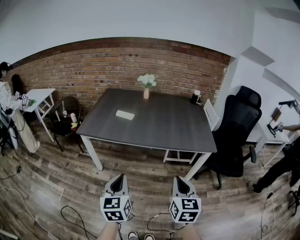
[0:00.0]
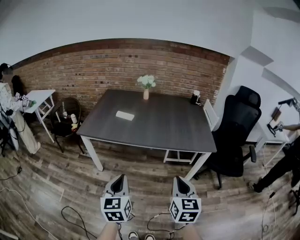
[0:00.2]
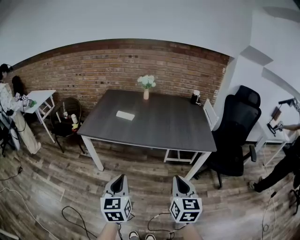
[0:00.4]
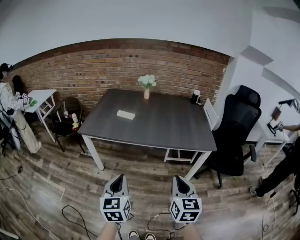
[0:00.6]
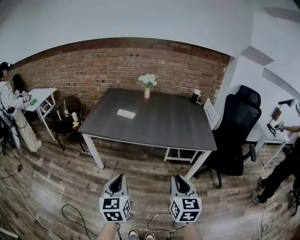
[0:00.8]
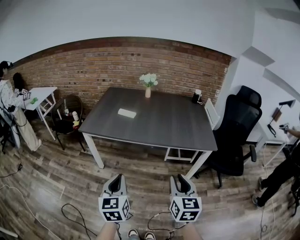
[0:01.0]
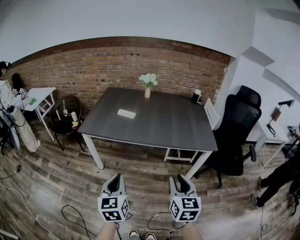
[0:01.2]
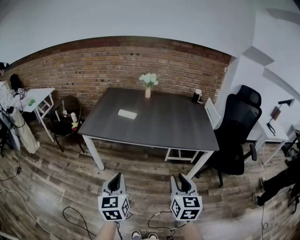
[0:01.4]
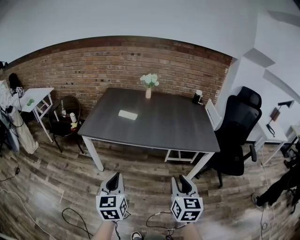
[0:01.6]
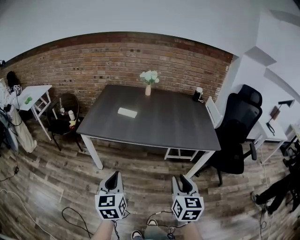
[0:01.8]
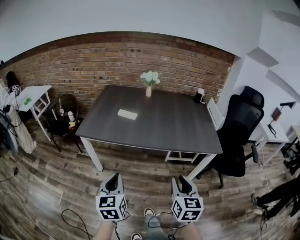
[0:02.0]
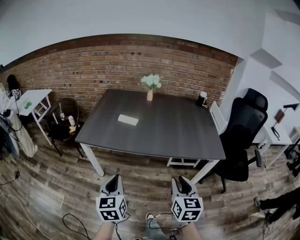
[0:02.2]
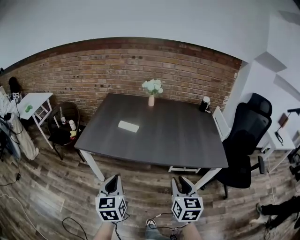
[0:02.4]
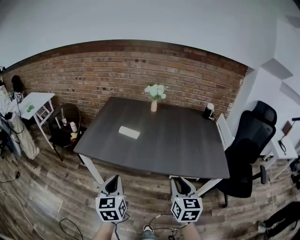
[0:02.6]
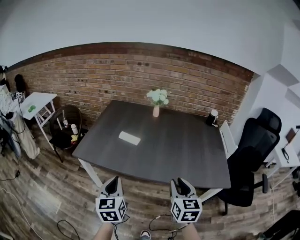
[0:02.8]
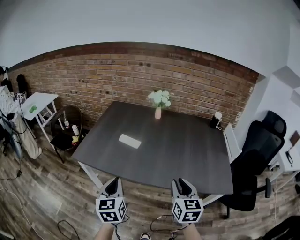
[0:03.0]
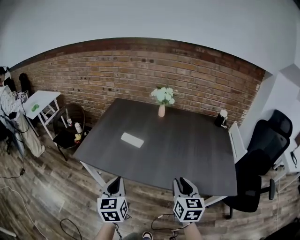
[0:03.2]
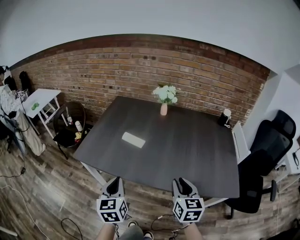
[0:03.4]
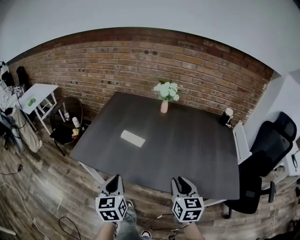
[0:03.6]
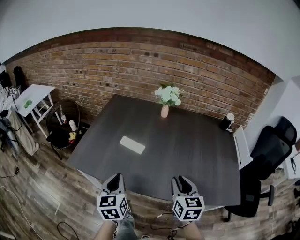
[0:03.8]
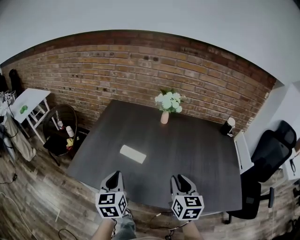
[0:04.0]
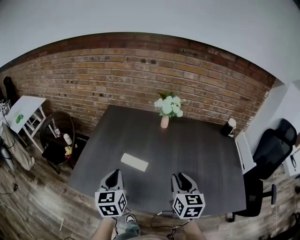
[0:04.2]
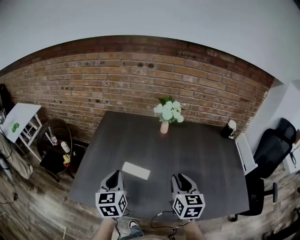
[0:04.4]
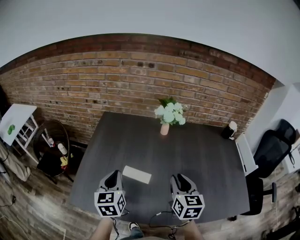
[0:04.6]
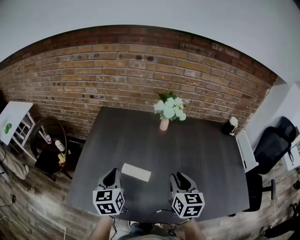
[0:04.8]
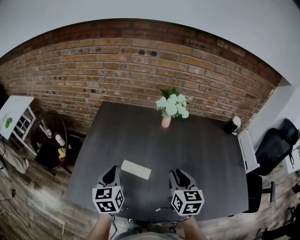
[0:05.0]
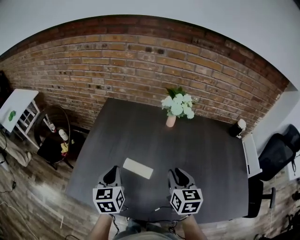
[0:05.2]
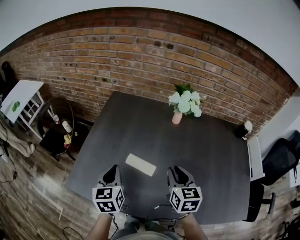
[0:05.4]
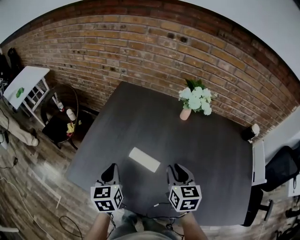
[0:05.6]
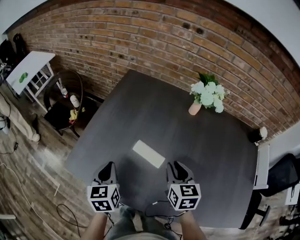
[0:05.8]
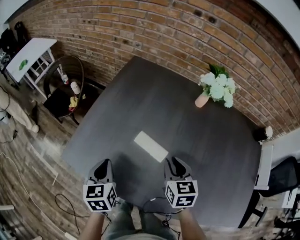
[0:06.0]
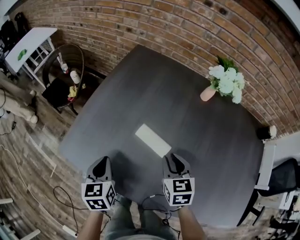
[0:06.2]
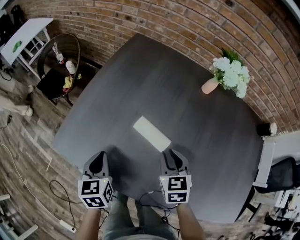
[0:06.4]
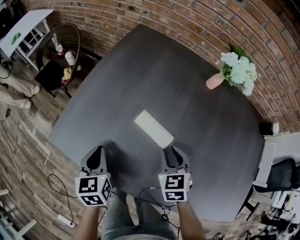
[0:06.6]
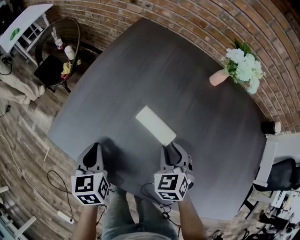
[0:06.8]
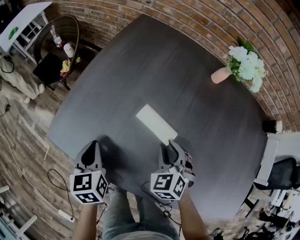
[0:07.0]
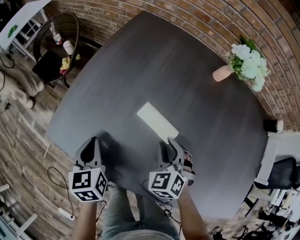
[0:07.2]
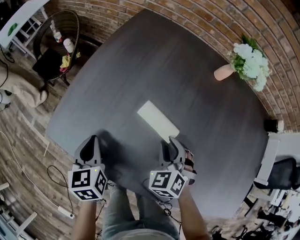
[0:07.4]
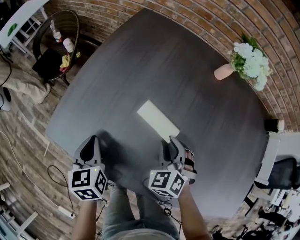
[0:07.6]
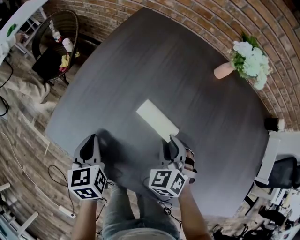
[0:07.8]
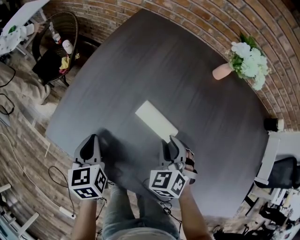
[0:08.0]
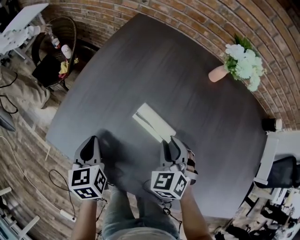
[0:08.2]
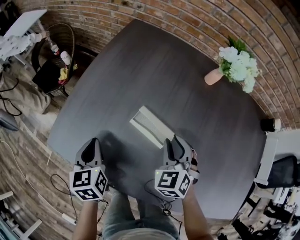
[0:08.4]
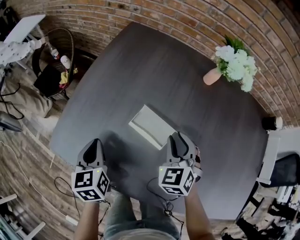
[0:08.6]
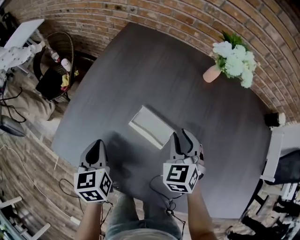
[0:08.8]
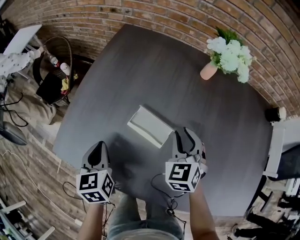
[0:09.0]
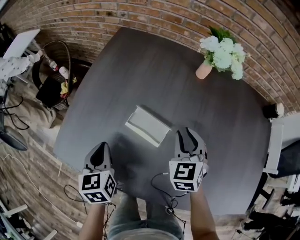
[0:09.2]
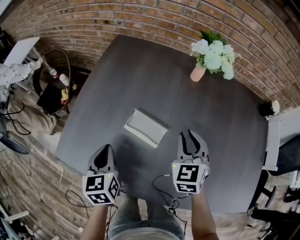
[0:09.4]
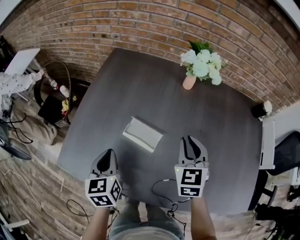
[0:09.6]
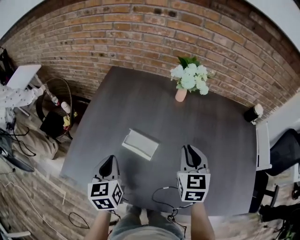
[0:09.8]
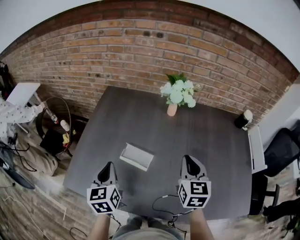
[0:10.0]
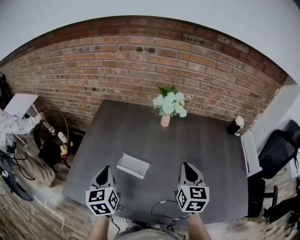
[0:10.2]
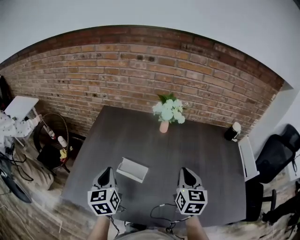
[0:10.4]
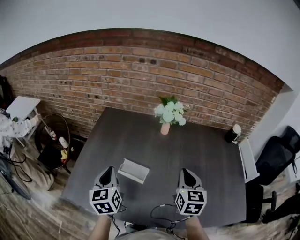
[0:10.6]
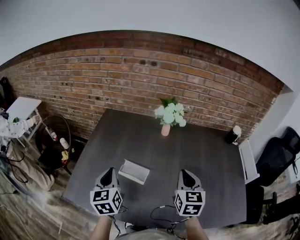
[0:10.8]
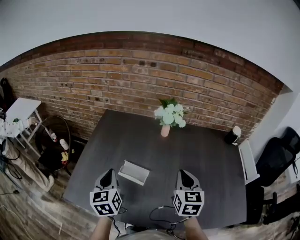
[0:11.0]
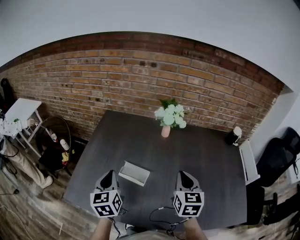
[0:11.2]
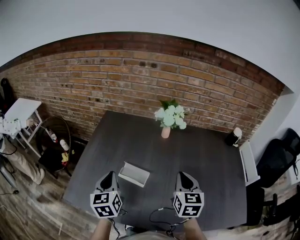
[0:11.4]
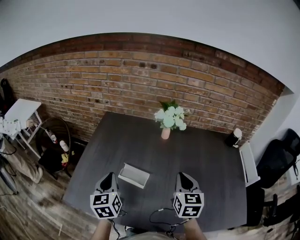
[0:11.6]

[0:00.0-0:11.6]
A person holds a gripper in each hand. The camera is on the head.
0:00.0 to 0:01.4: The right gripper opens up.
0:01.4 to 0:02.8: Both grippers move forward, approximately 25 cm.
0:02.8 to 0:04.4: Both grippers travel together forward, some 35 cm.
0:04.4 to 0:05.8: The right gripper moves forward, downward and to the left, roughly 15 cm, and changes its angle by some 20 degrees; the left gripper goes roughly 15 cm downward and to the left, and changes its angle by about 20 degrees.
0:05.8 to 0:07.2: Both grippers travel together downward and to the left, about 15 cm. The right gripper twists approximately 50 degrees counterclockwise, seen from behind.
0:07.2 to 0:08.8: The right gripper shifts approximately 10 cm to the right, upward and forward, while the left gripper moves some 5 cm.
0:08.8 to 0:10.2: The left gripper shifts approximately 15 cm upward and to the right, and turns by roughly 20 degrees. The right gripper moves upward, to the right and backward, some 20 cm, swivels some 50 degrees, and closes.
0:10.2 to 0:11.6: The grippers move only a little.

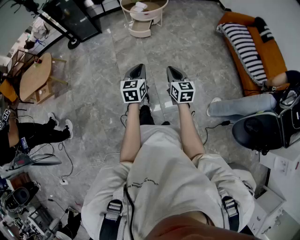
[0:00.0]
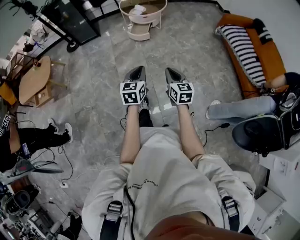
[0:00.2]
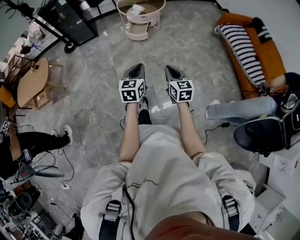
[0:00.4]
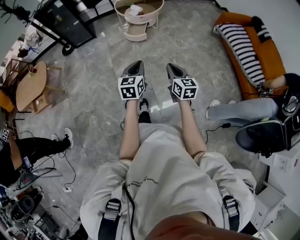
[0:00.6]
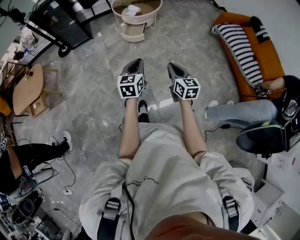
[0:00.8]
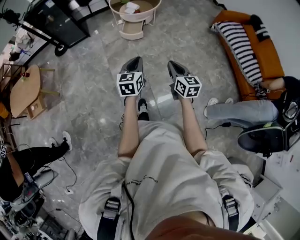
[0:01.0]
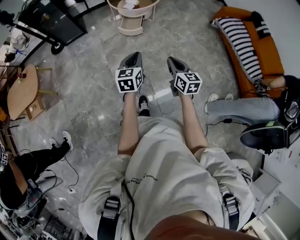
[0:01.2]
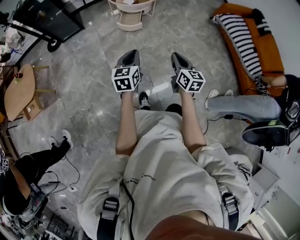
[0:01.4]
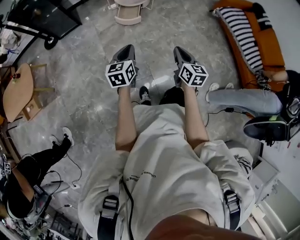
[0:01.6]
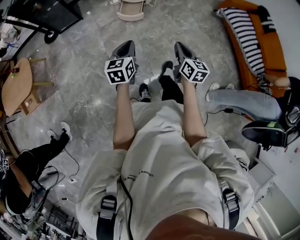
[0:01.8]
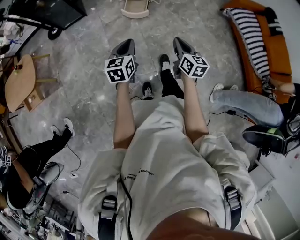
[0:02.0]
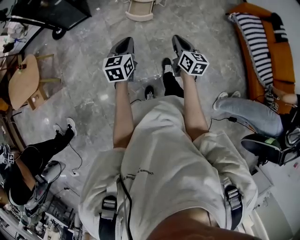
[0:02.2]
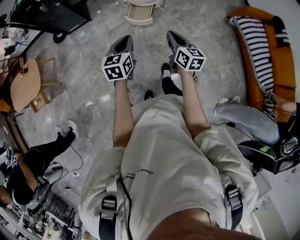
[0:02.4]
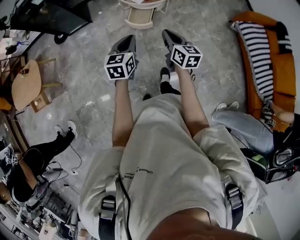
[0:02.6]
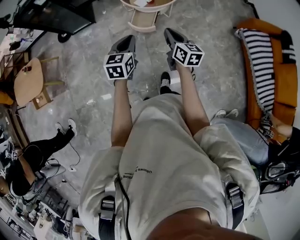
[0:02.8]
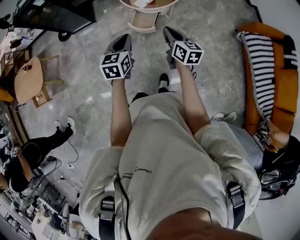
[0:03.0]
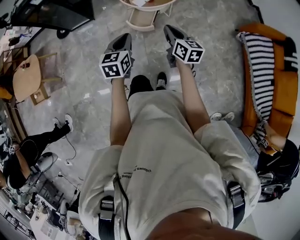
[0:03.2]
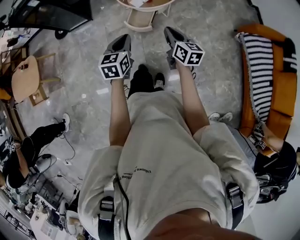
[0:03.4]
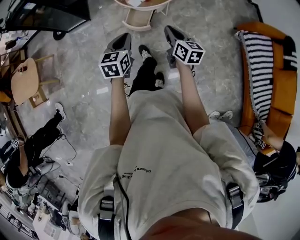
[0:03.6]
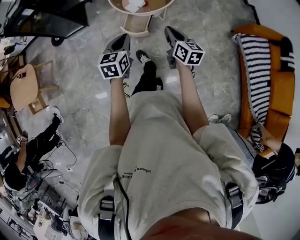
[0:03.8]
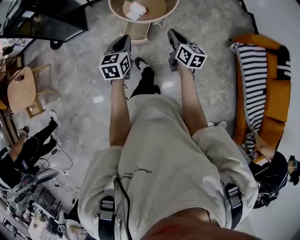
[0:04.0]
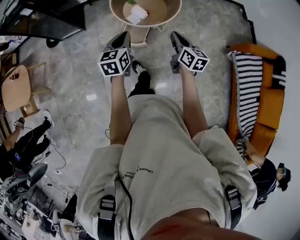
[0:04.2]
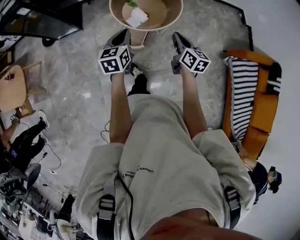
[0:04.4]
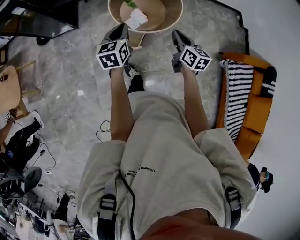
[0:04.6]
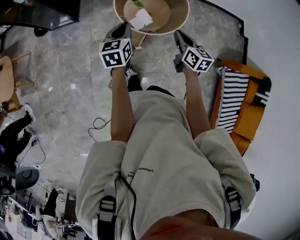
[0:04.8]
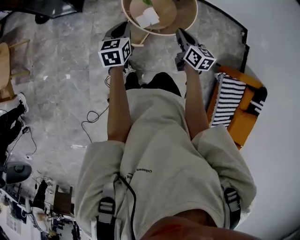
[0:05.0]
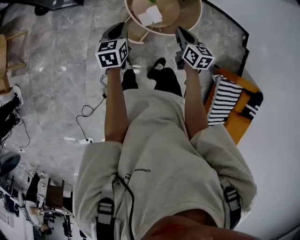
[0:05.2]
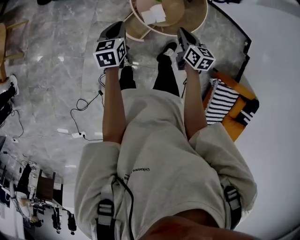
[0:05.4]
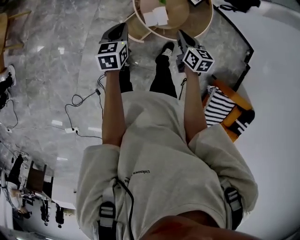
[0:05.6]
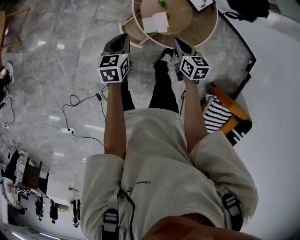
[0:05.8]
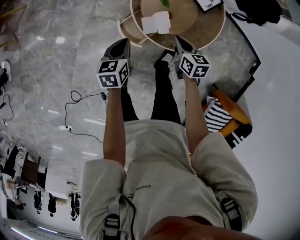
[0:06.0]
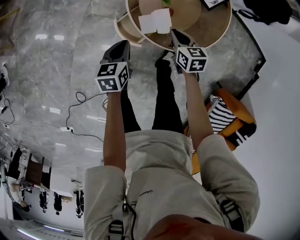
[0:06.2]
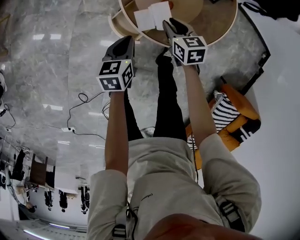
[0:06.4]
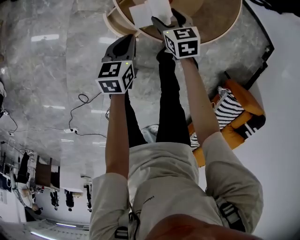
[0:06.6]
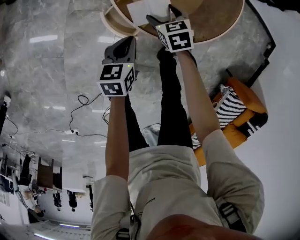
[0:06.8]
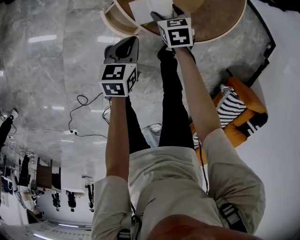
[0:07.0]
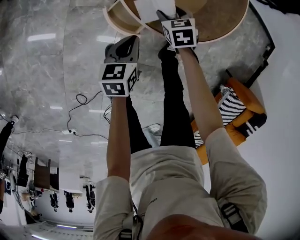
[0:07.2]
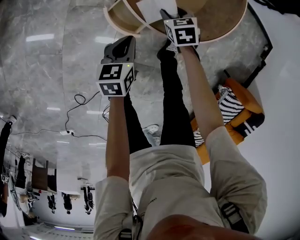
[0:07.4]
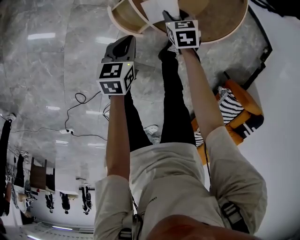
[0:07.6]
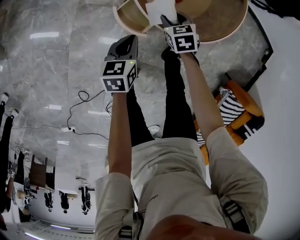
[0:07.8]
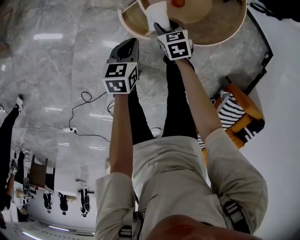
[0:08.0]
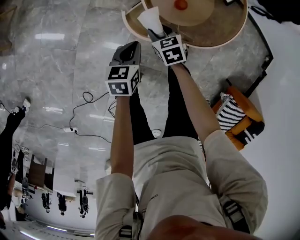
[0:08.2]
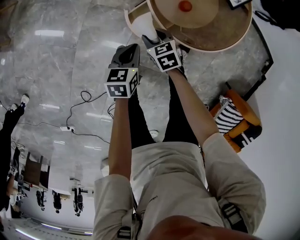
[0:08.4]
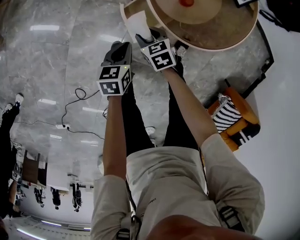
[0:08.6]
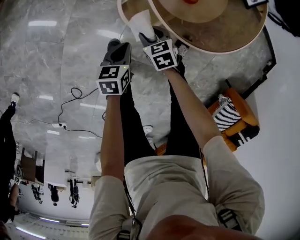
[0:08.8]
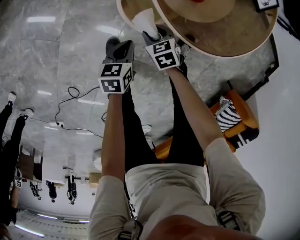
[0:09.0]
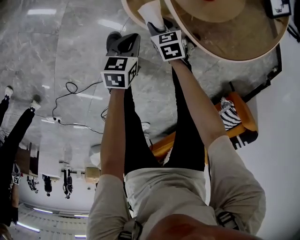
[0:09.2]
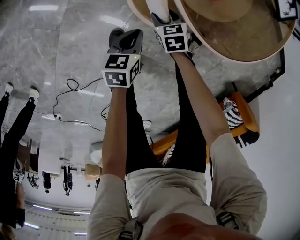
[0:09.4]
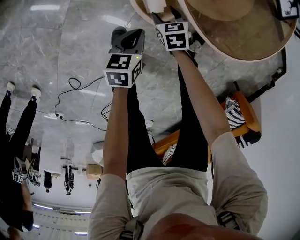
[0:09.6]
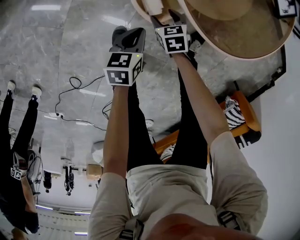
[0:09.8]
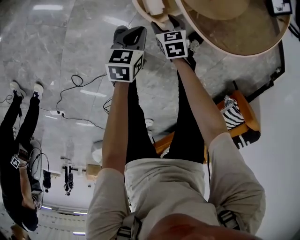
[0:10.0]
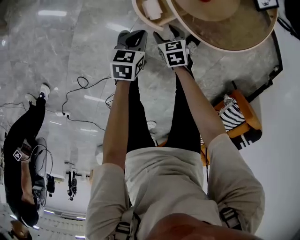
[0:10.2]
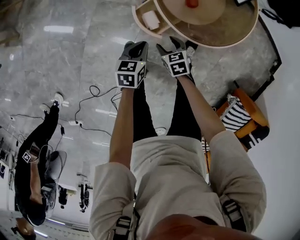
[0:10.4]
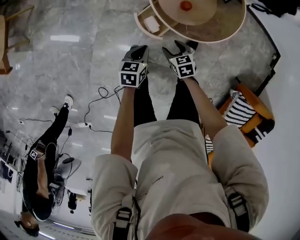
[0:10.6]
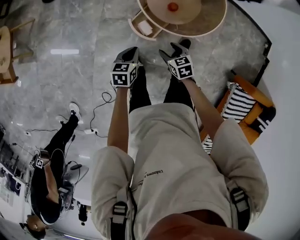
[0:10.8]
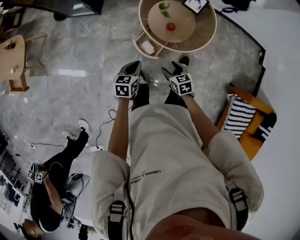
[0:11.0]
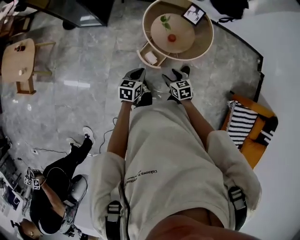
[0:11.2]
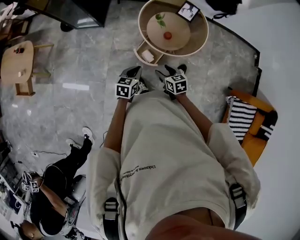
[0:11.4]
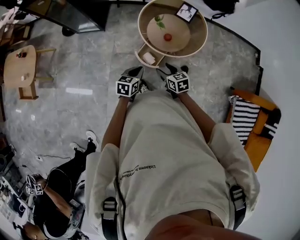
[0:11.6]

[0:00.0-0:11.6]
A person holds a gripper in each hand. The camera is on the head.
0:00.0 to 0:01.4: The left gripper goes approximately 30 cm forward and to the left, while the right gripper is displaced forward by approximately 25 cm.
0:01.4 to 0:02.8: Both grippers move forward, roughly 35 cm.
0:02.8 to 0:04.4: The two grippers go roughly 30 cm forward.
0:04.4 to 0:05.8: The right gripper moves about 35 cm, and turns by about 40 degrees. The left gripper moves downward, approximately 20 cm, and changes its angle by roughly 30 degrees.
0:05.8 to 0:07.2: The grippers both shift downward by roughly 30 cm. The right gripper turns by some 30 degrees, and opens its fingers.
0:07.2 to 0:08.8: The left gripper shifts approximately 15 cm downward, to the left and backward. The right gripper travels to the left, backward and downward by some 20 cm.
0:08.8 to 0:10.2: The left gripper travels downward and back again, some 10 cm each way, while the right gripper travels downward and back again, roughly 10 cm each way.
0:10.2 to 0:11.6: The grippers both shift upward by about 50 cm. The left gripper swivels some 30 degrees. The right gripper changes its angle by some 30 degrees.
